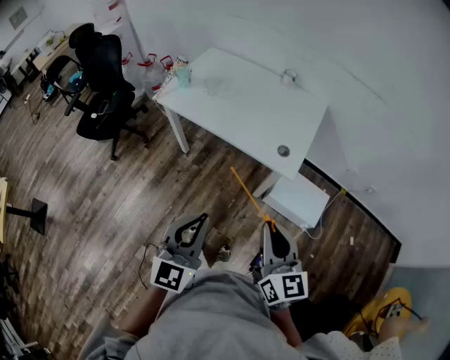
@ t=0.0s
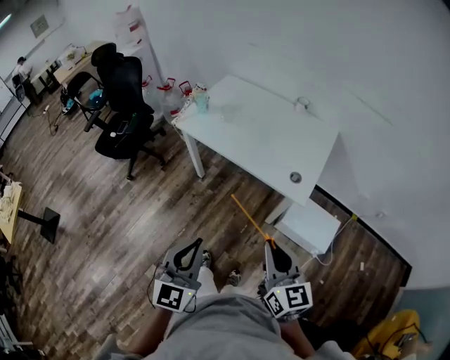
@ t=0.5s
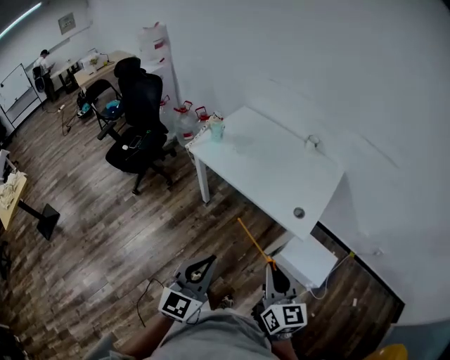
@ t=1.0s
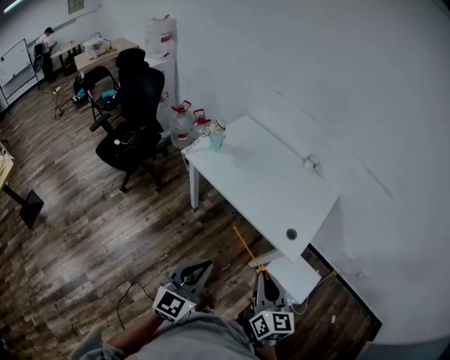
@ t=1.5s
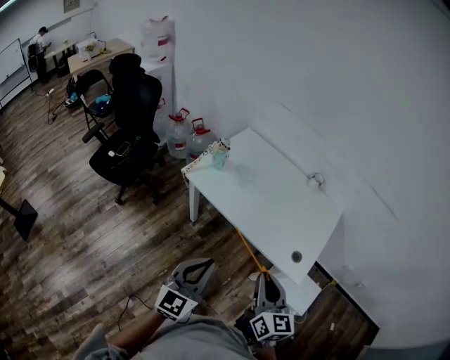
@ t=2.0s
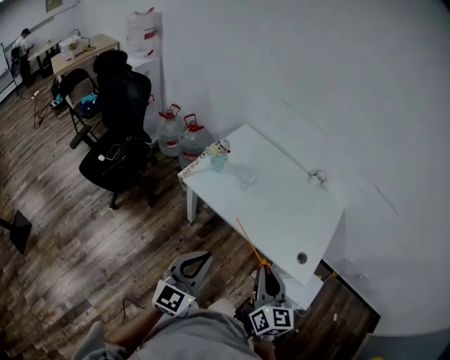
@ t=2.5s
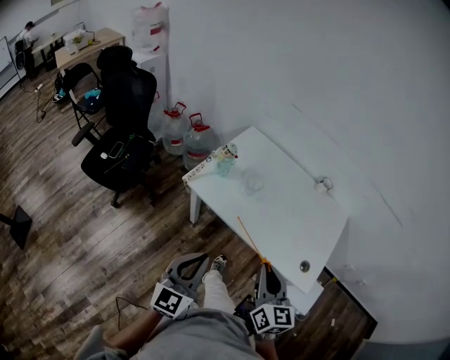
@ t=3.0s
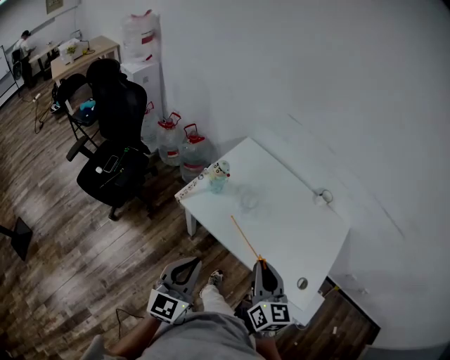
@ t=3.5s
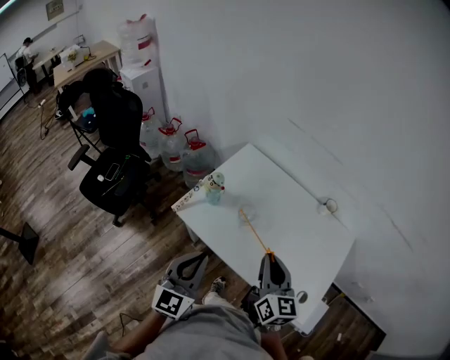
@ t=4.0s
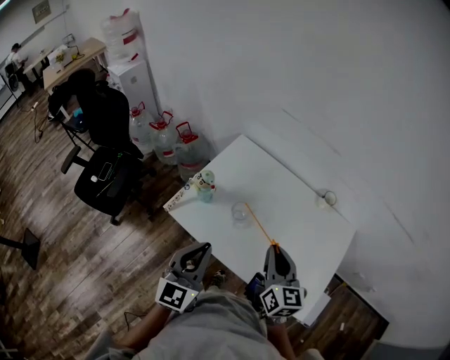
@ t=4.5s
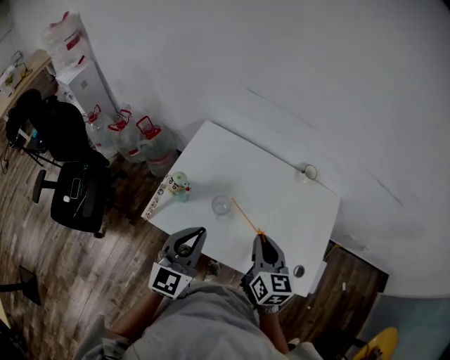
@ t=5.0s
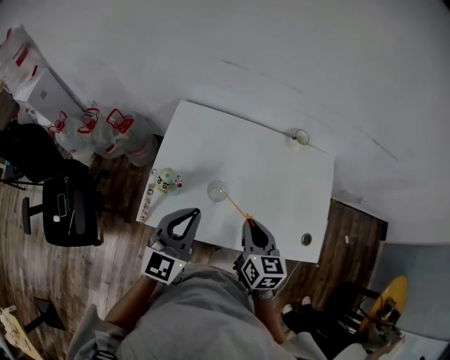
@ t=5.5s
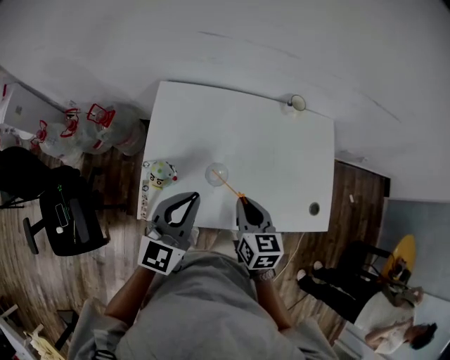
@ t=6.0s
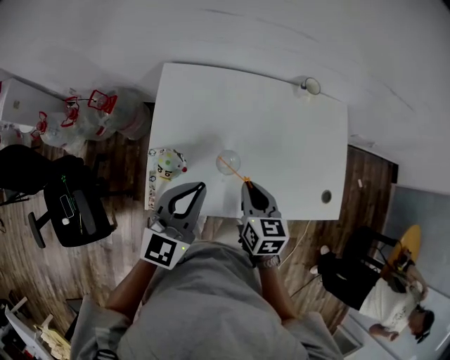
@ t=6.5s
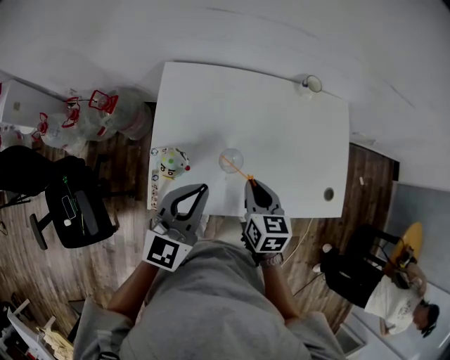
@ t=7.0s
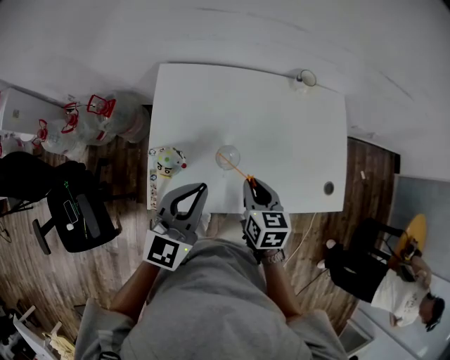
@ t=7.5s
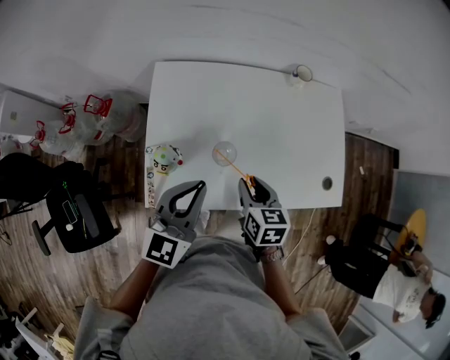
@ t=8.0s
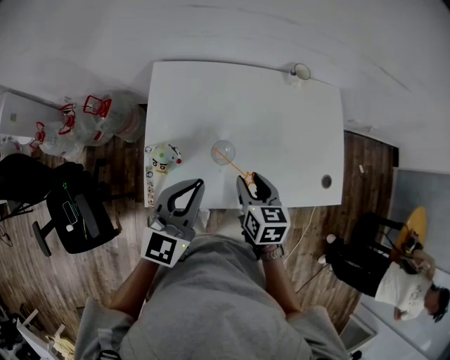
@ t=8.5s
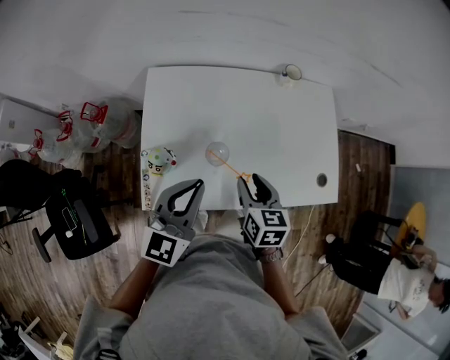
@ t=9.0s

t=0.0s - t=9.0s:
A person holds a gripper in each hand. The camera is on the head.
t=0.0s - t=2.0s: Both grippers move forward and to the left, approximately 20 cm.
t=2.0s - t=4.5s: Both grippers travel together forward, some 30 cm.
t=4.5s - t=7.0s: The right gripper shifts approximately 15 cm downward, and changes its angle by about 40 degrees; the left gripper shifts by about 20 cm, and rotates roughly 40 degrees.
t=7.0s - t=9.0s: The right gripper opens.

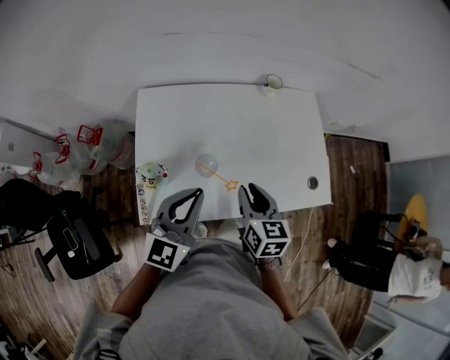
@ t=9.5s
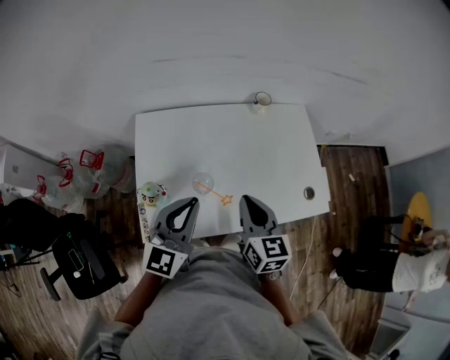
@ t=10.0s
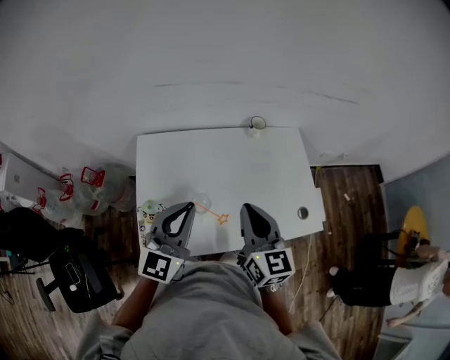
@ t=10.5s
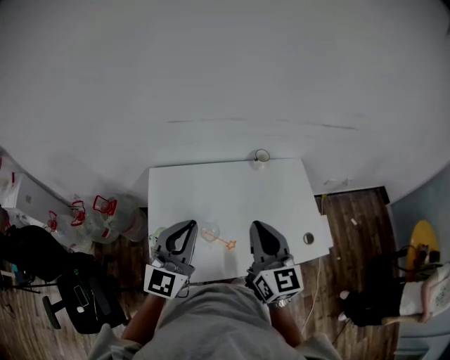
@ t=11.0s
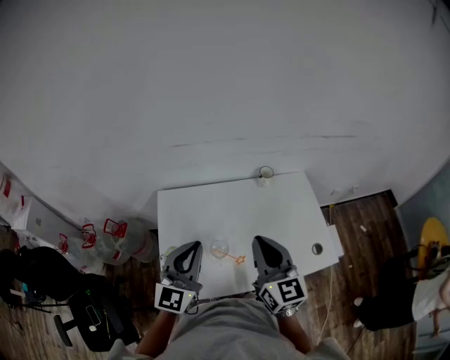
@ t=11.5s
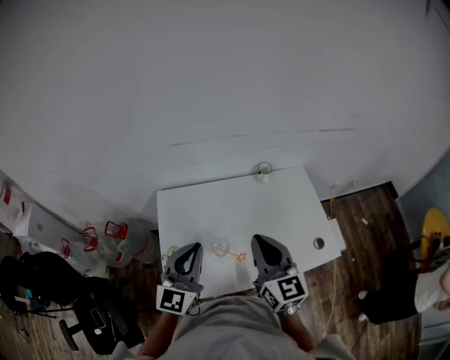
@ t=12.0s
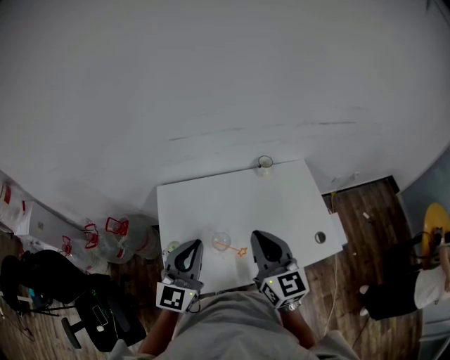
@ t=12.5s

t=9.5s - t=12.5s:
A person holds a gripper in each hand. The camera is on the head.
t=9.5s - t=11.0s: The left gripper moves upward, some 10 cm. Meanwhile the right gripper travels upward by roughly 20 cm, turns by roughly 30 degrees, and closes its fingers.
t=11.0s - t=12.5s: There are only small adjustments of the grippers.

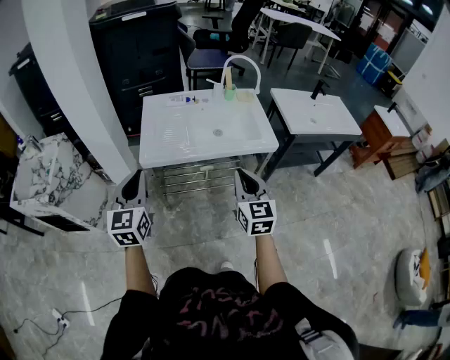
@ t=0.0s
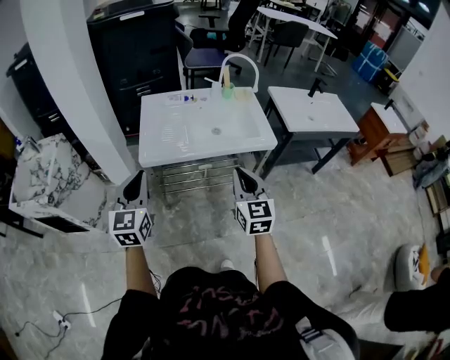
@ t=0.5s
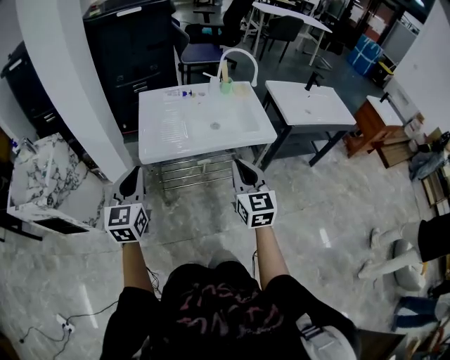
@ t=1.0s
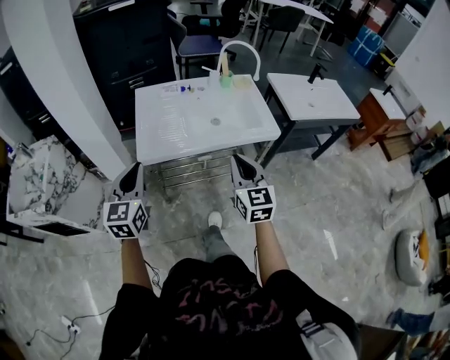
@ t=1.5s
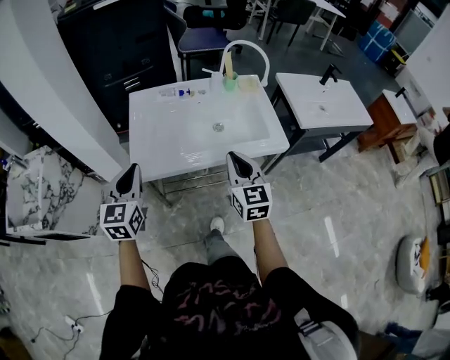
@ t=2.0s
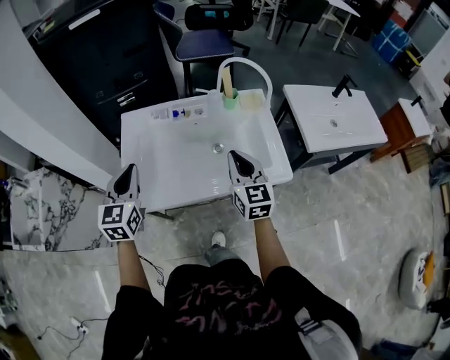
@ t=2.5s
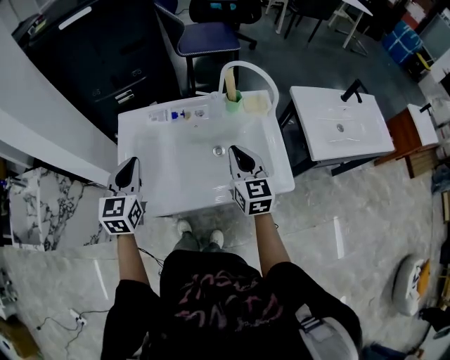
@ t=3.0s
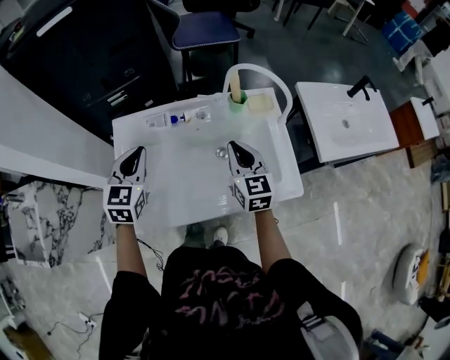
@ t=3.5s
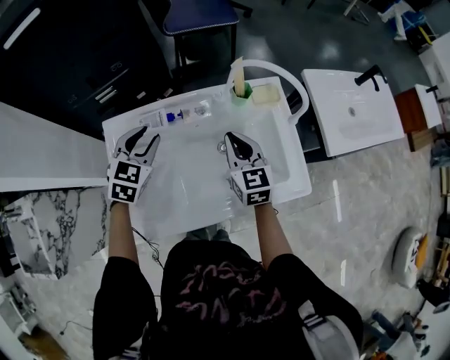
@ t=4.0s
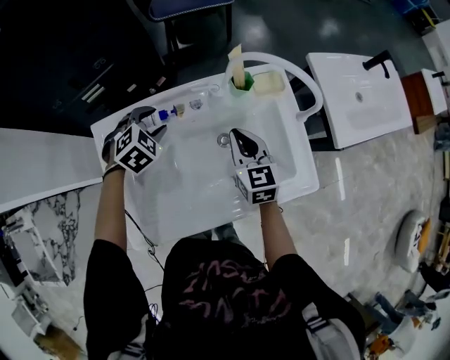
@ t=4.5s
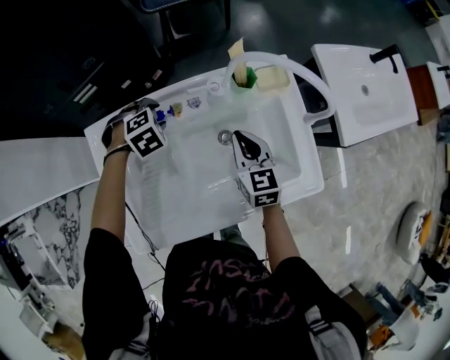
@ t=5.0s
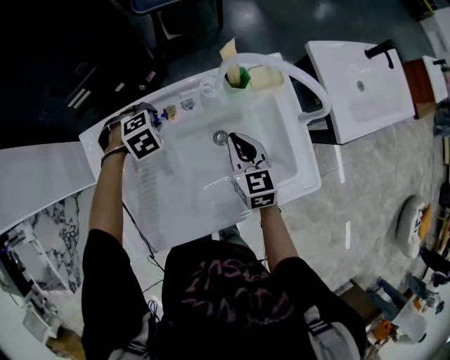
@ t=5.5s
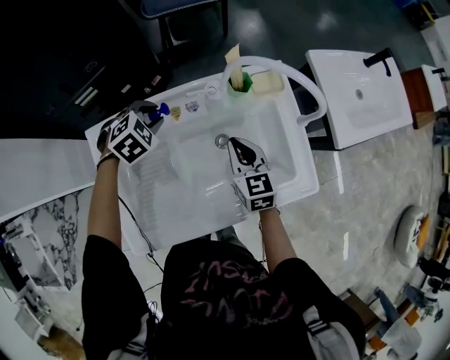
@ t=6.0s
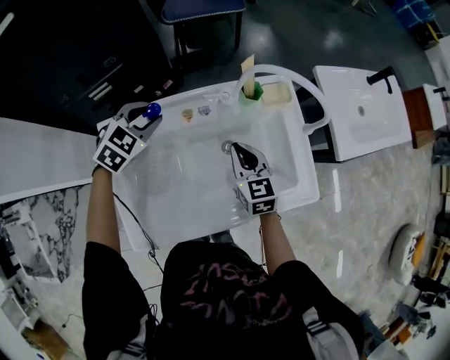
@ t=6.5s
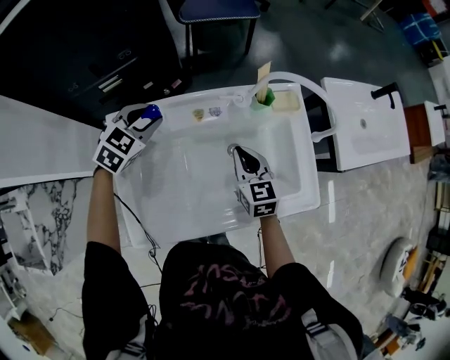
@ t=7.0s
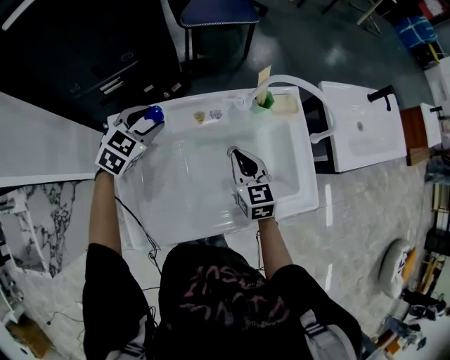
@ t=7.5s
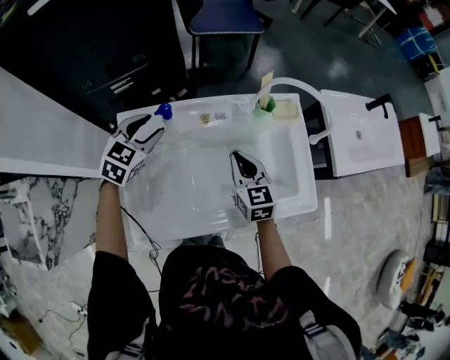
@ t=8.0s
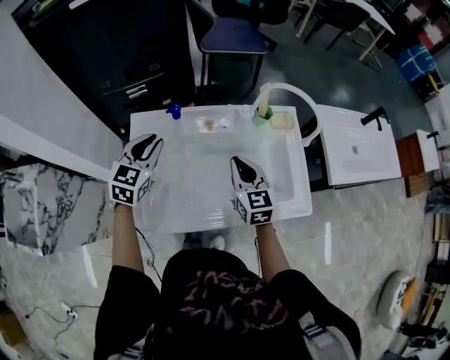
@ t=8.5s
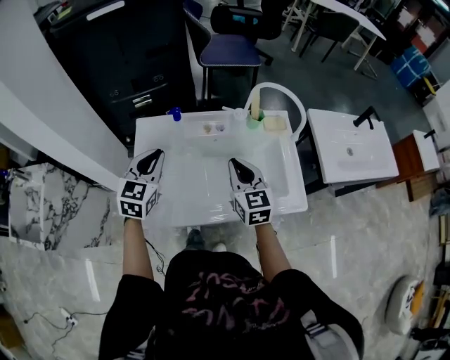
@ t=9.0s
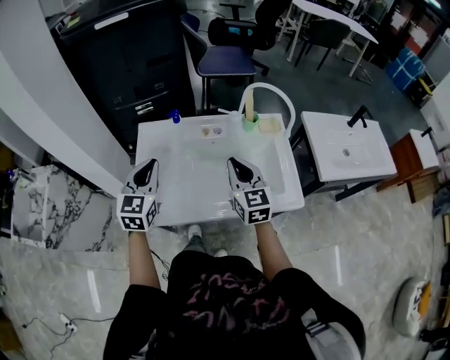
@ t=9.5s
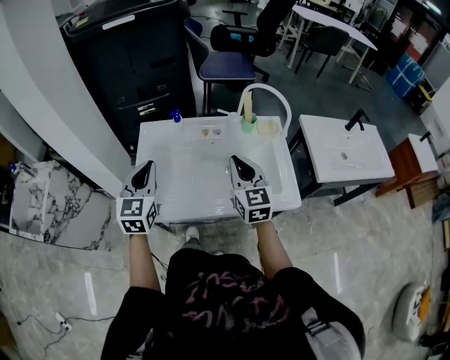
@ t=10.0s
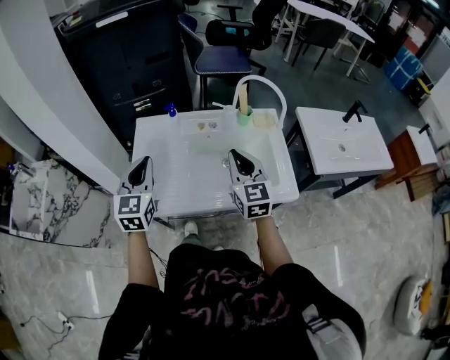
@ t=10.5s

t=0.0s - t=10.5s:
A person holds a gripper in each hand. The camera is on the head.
t=0.0s - t=2.0s: Both grippers travel together forward, some 15 cm.
t=2.0s - t=4.0s: Both grippers travel together forward, roughly 40 cm. The left gripper turns by about 30 degrees, and opens.
t=4.0s - t=6.5s: The left gripper moves roughly 15 cm downward and comes back, and rotates about 20 degrees, while the right gripper is displaced downward by approximately 5 cm.
t=6.5s - t=8.5s: The right gripper is displaced upward and backward by about 10 cm, while the left gripper moves backward, upward and to the left, roughly 20 cm, and changes its angle by about 40 degrees.
t=8.5s - t=10.5s: The two grippers go some 15 cm backward and upward. The left gripper turns by about 20 degrees.

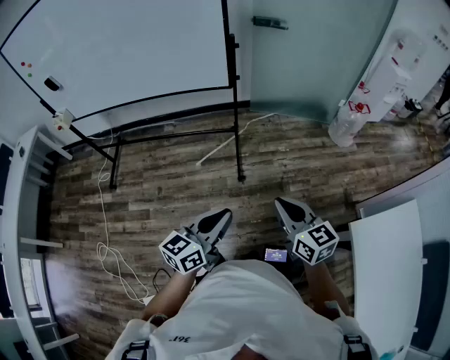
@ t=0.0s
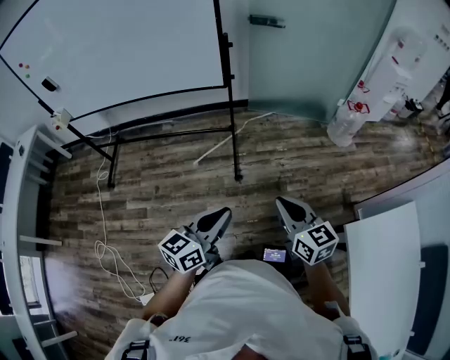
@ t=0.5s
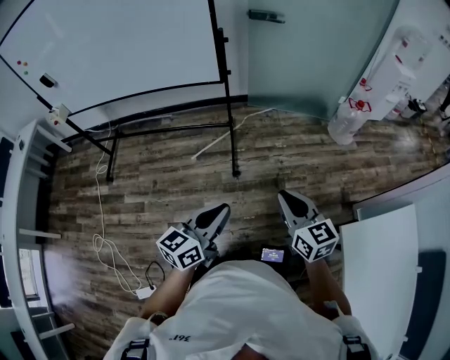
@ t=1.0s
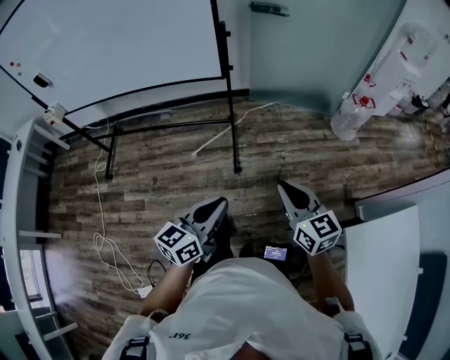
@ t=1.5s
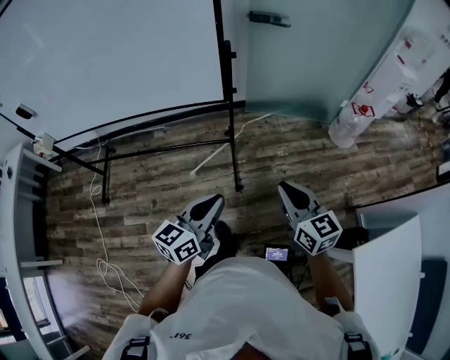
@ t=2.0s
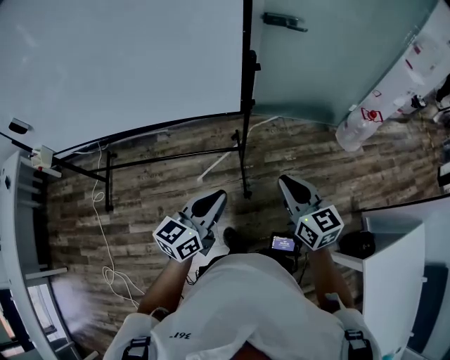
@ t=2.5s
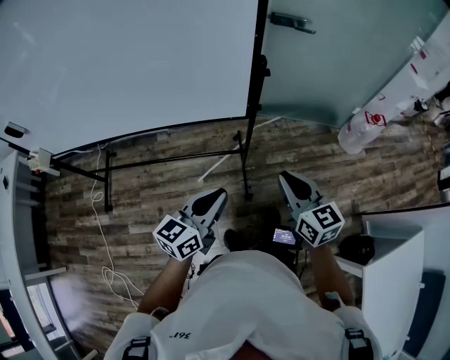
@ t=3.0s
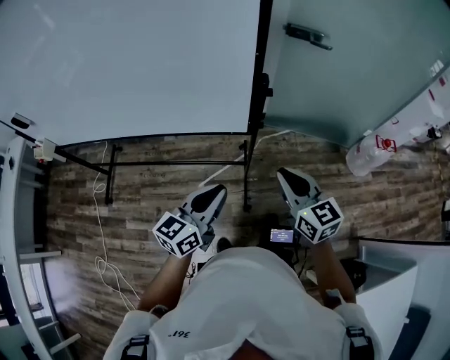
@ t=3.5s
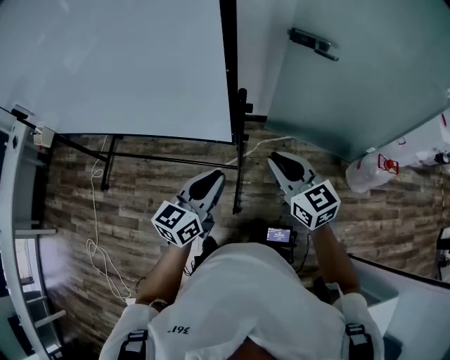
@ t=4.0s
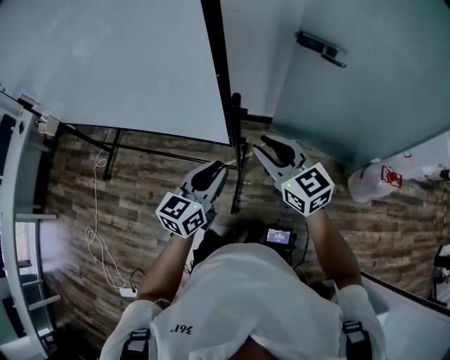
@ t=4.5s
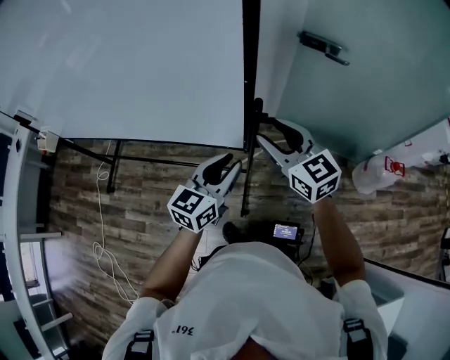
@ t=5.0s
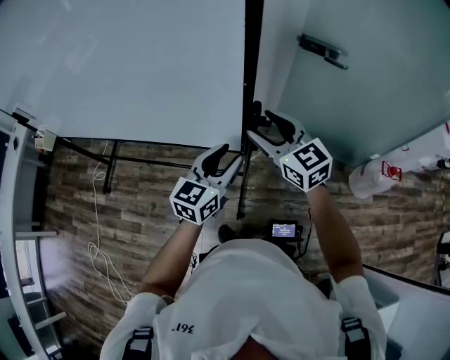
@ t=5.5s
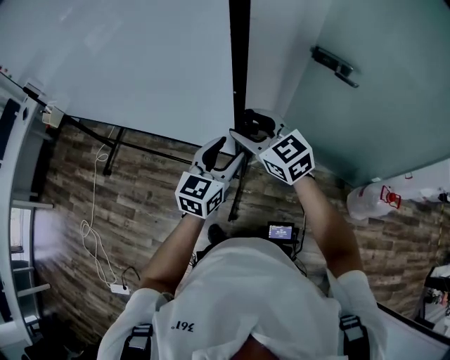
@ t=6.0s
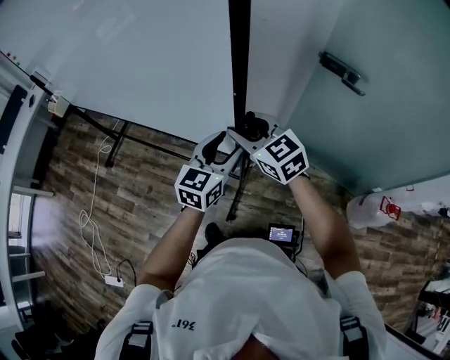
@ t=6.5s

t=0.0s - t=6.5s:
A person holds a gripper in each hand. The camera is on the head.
t=0.0s - t=2.0s: Both grippers move forward, about 20 cm.
t=2.0s - t=4.5s: The right gripper changes place by about 40 cm, and turns by about 30 degrees; the left gripper shifts by roughly 35 cm, and swivels about 20 degrees.
t=4.5s - t=6.5s: The right gripper goes about 15 cm forward and to the left. Meanwhile the left gripper travels forward by roughly 10 cm, and opens its fingers.
